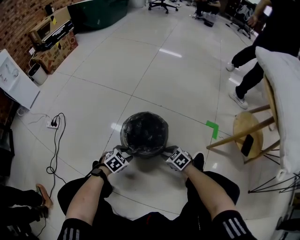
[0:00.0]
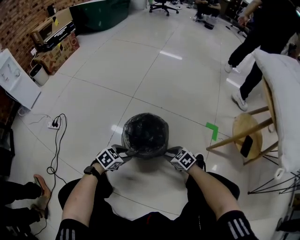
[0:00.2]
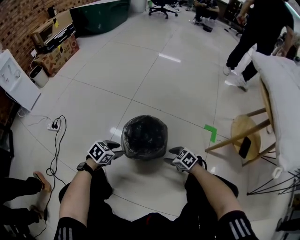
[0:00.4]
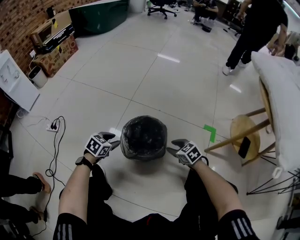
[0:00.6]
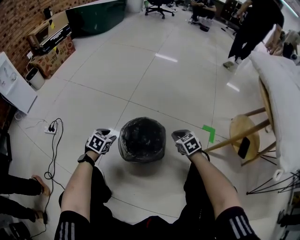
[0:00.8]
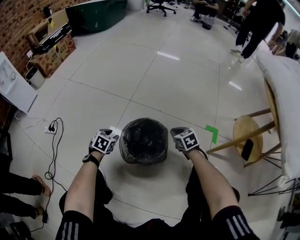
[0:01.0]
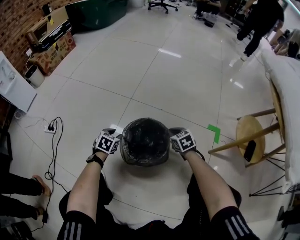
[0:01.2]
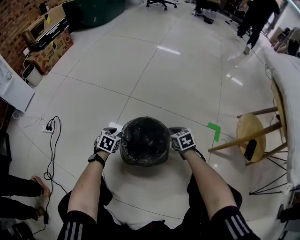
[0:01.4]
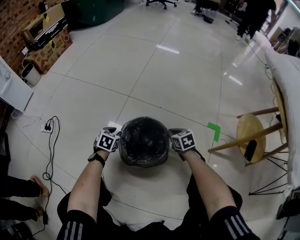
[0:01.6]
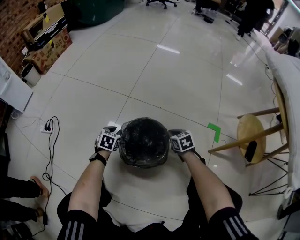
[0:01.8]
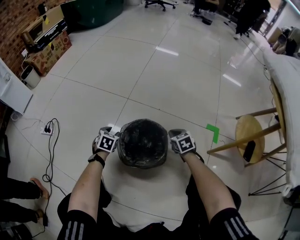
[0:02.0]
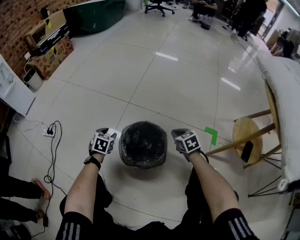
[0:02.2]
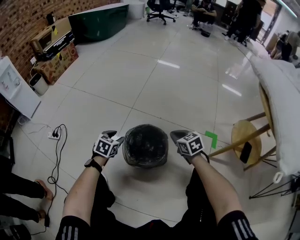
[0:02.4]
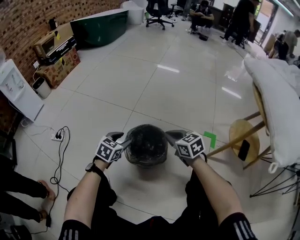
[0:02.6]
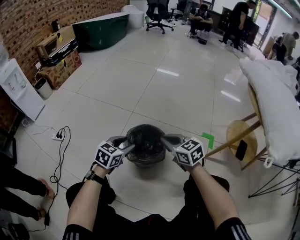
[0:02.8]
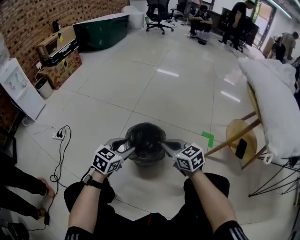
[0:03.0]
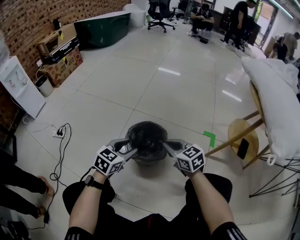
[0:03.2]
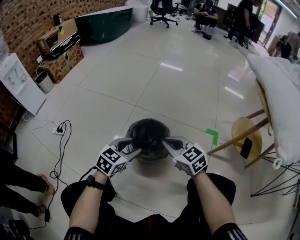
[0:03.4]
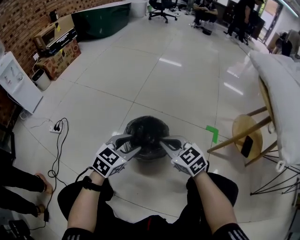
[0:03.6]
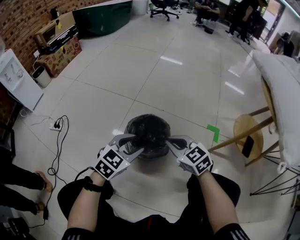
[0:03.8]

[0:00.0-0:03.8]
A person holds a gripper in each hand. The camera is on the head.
0:00.0 to 0:01.2: The left gripper moves some 15 cm, and swivels roughly 20 degrees. Meanwhile the right gripper ends up some 15 cm from where it was, swivels about 20 degrees, and closes up.
0:01.2 to 0:02.6: Both grippers travel together upward, about 15 cm.
0:02.6 to 0:03.8: The right gripper shifts some 5 cm backward. The left gripper travels backward, upward and to the right by approximately 10 cm.

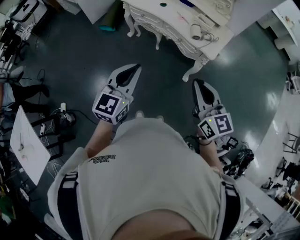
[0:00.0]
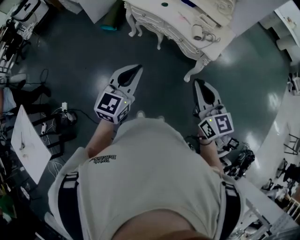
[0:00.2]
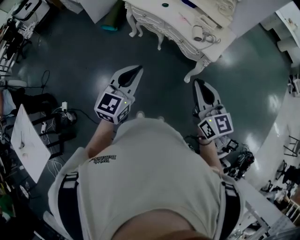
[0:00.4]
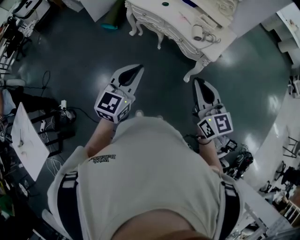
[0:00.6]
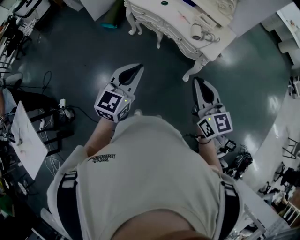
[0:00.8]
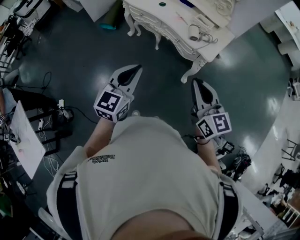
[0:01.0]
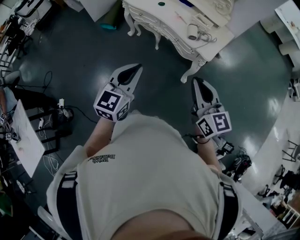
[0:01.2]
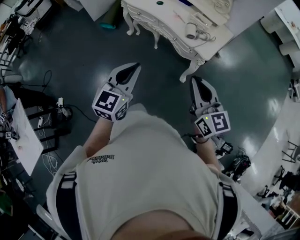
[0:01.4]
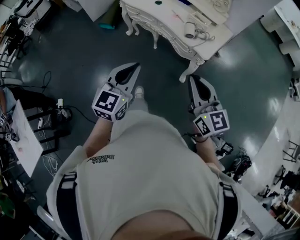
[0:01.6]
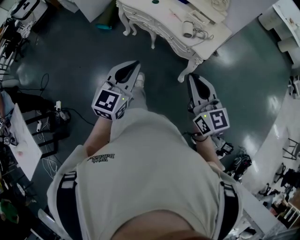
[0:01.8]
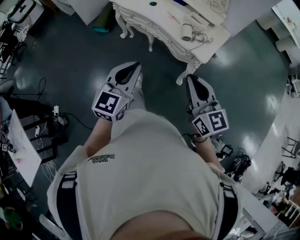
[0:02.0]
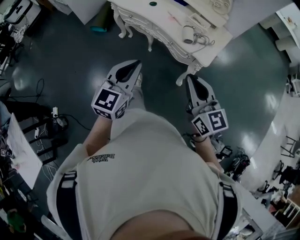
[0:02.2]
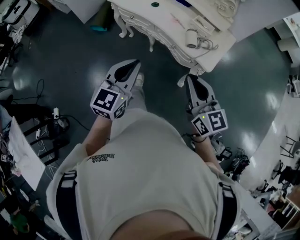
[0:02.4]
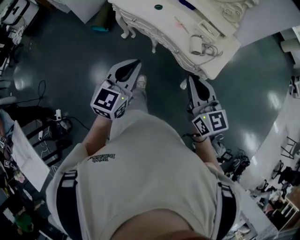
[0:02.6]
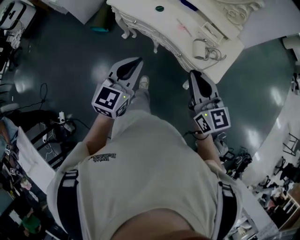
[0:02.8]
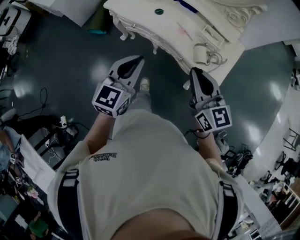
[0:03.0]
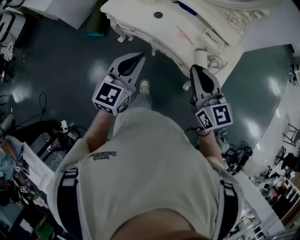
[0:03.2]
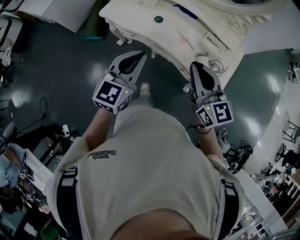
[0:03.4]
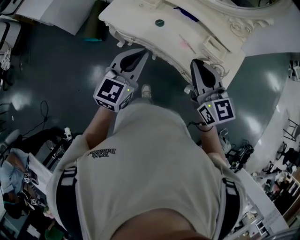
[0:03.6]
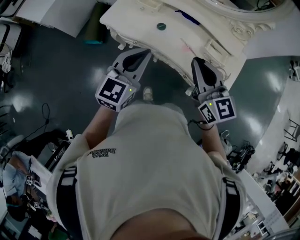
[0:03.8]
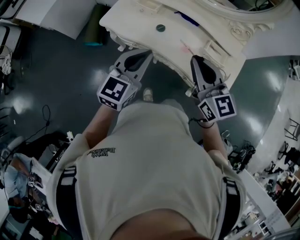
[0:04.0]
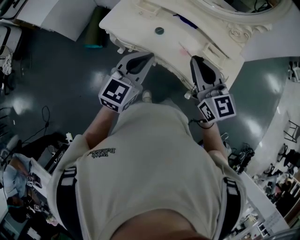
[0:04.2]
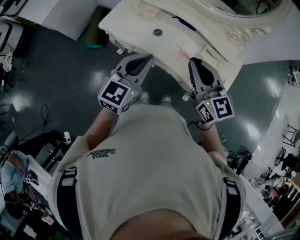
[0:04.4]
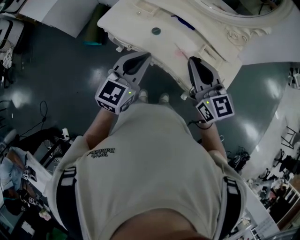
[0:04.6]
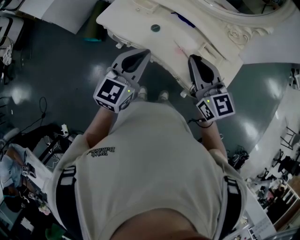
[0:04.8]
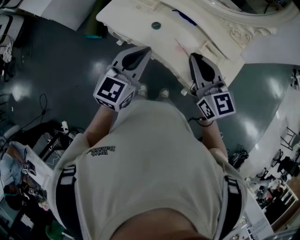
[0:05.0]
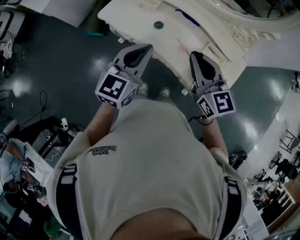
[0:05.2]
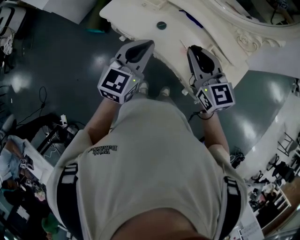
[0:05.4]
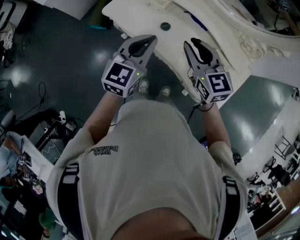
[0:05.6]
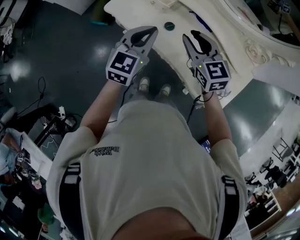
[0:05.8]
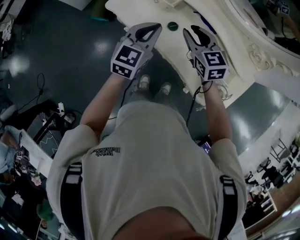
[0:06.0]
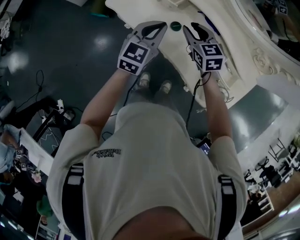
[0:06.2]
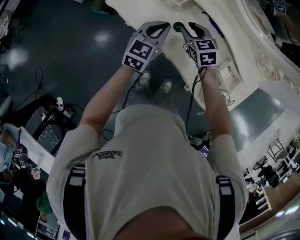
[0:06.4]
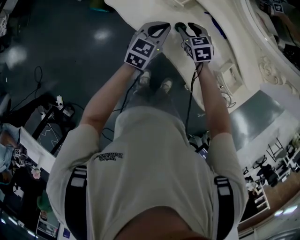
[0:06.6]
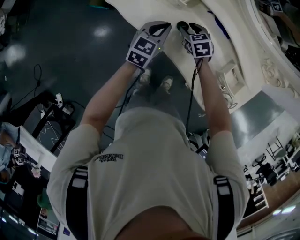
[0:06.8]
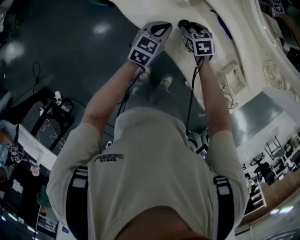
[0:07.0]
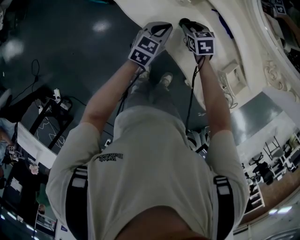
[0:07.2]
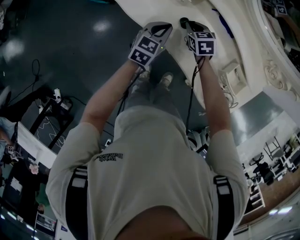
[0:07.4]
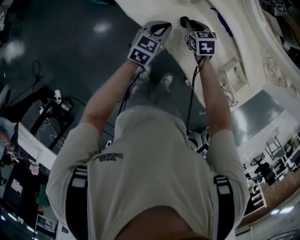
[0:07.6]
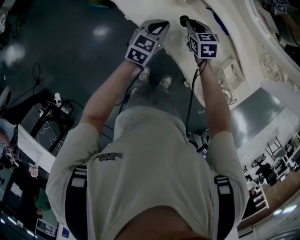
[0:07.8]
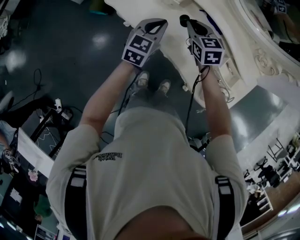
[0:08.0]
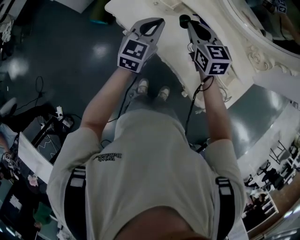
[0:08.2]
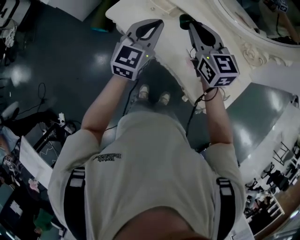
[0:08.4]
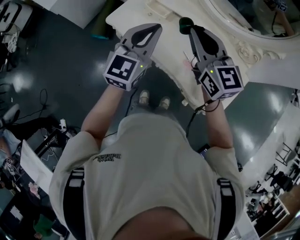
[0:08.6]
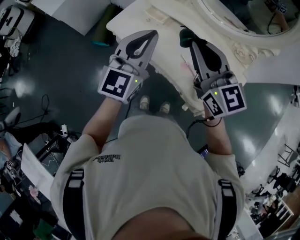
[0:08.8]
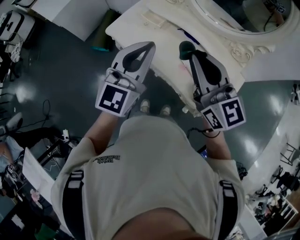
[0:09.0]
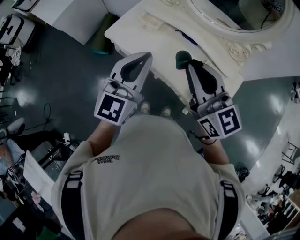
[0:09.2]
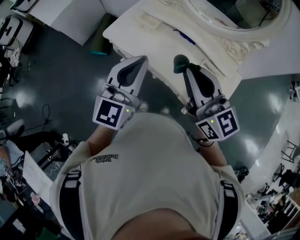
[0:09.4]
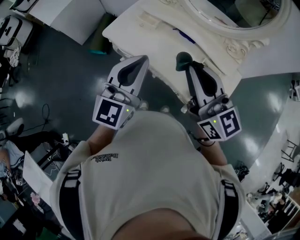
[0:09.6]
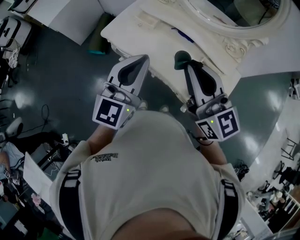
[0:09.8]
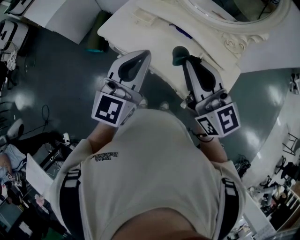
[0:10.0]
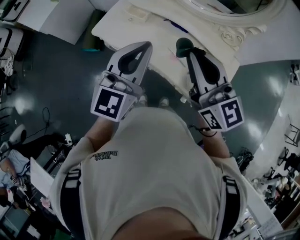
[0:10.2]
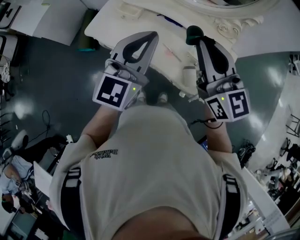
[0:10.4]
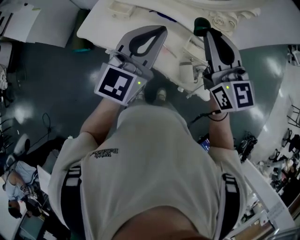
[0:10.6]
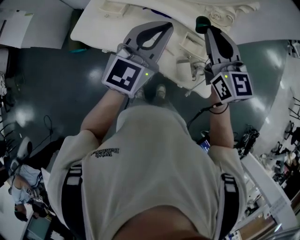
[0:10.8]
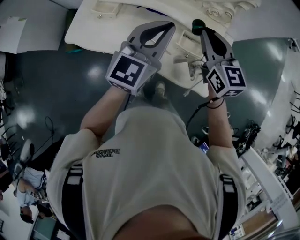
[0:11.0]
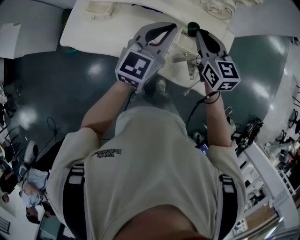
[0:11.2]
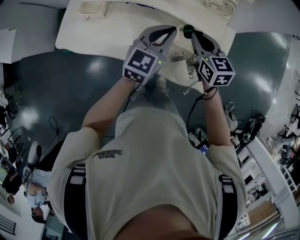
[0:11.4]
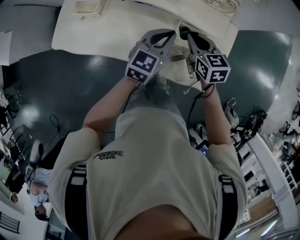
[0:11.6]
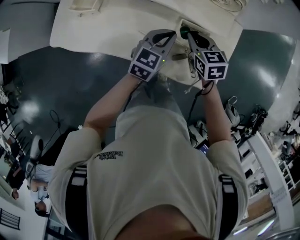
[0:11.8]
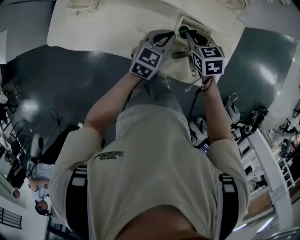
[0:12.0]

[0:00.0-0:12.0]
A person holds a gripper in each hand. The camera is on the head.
0:00.0 to 0:01.6: The two grippers go some 10 cm to the right.
0:01.6 to 0:03.0: The two grippers go some 30 cm forward.
0:03.0 to 0:04.4: The grippers both shift forward by some 15 cm.
0:04.4 to 0:06.0: The two grippers go some 25 cm forward and downward. The right gripper turns by roughly 20 degrees, and opens up.
0:06.0 to 0:07.6: The grippers both shift downward by roughly 20 cm. The right gripper rotates some 20 degrees, and closes its fingers.
0:07.6 to 0:09.0: The grippers both shift upward and backward by approximately 50 cm. The right gripper points its fingers about 50 degrees further upward, while the left gripper tips its fingers upward by some 40 degrees.
0:09.0 to 0:10.4: The grippers both shift to the right by some 10 cm.
0:10.4 to 0:12.0: The right gripper travels downward by about 40 cm, and tips its fingers downward by some 50 degrees. Meanwhile the left gripper travels downward and to the right by about 40 cm, and tips its fingers downward by some 30 degrees.

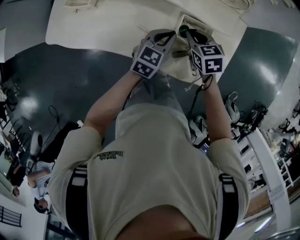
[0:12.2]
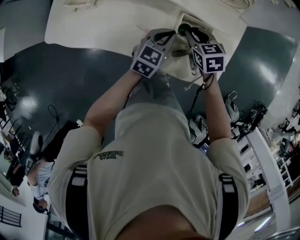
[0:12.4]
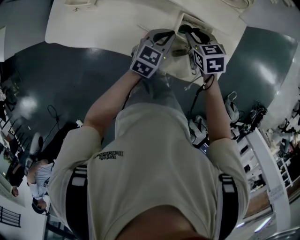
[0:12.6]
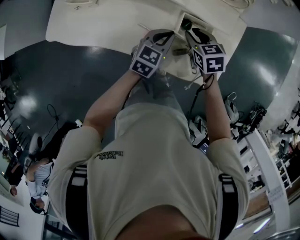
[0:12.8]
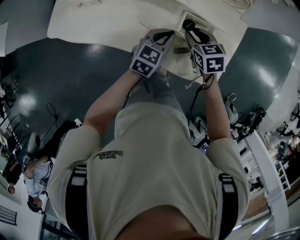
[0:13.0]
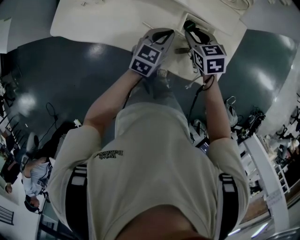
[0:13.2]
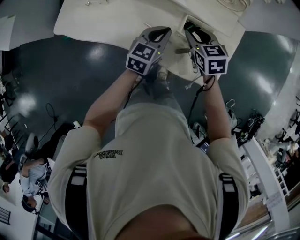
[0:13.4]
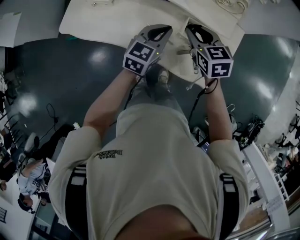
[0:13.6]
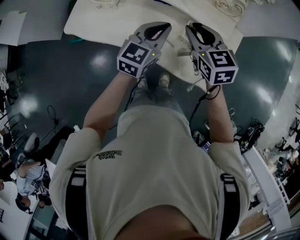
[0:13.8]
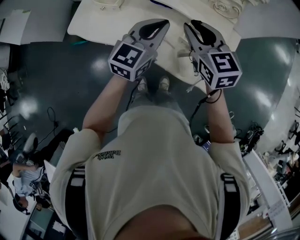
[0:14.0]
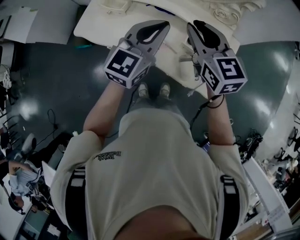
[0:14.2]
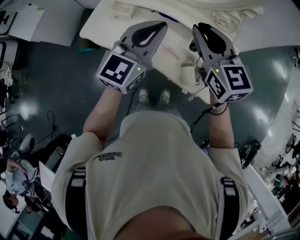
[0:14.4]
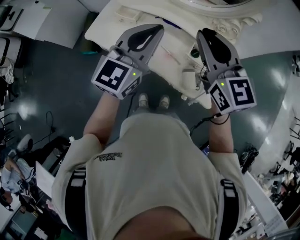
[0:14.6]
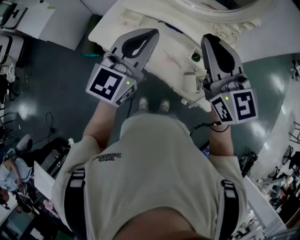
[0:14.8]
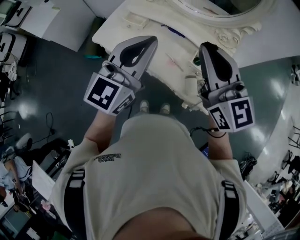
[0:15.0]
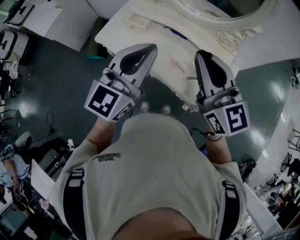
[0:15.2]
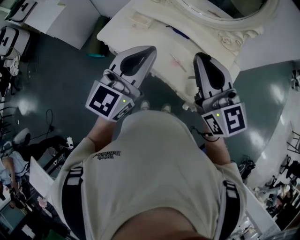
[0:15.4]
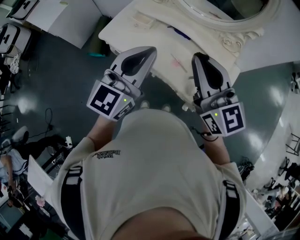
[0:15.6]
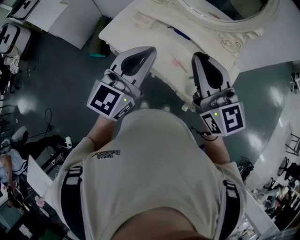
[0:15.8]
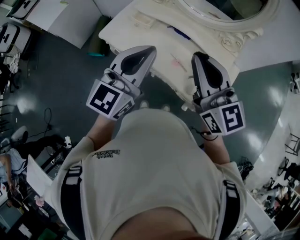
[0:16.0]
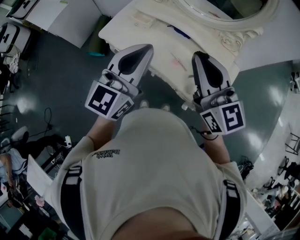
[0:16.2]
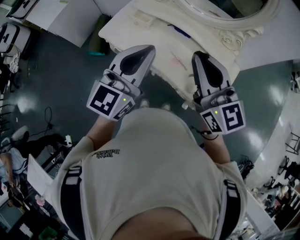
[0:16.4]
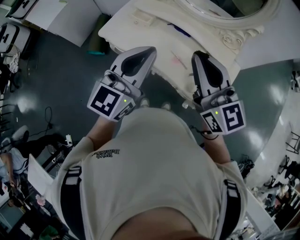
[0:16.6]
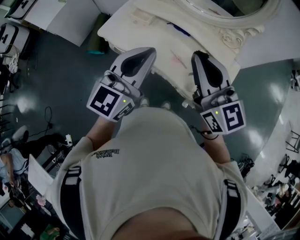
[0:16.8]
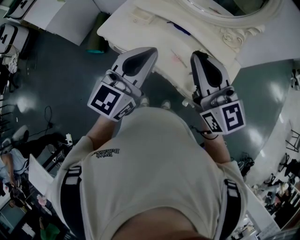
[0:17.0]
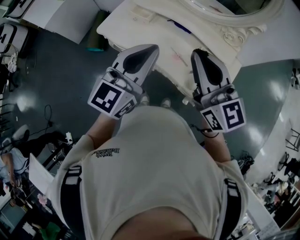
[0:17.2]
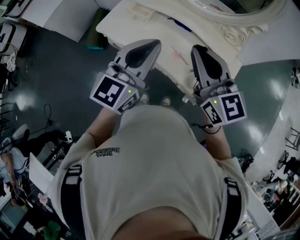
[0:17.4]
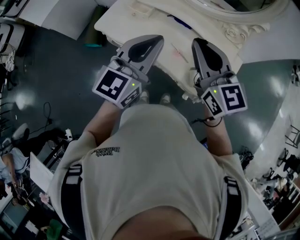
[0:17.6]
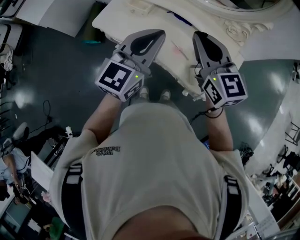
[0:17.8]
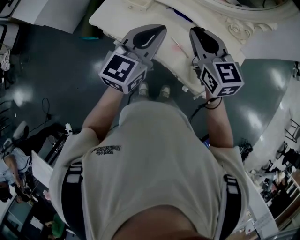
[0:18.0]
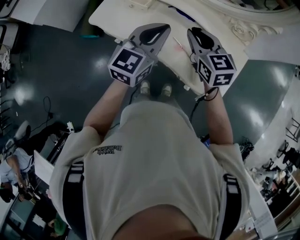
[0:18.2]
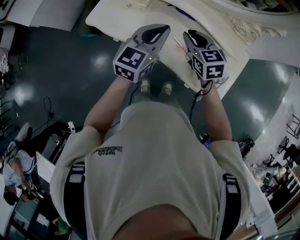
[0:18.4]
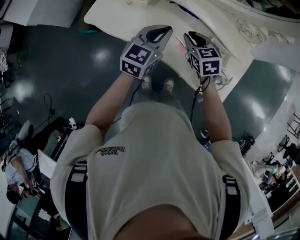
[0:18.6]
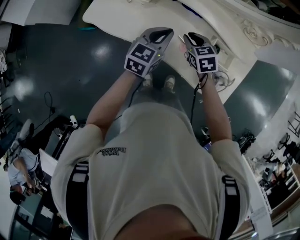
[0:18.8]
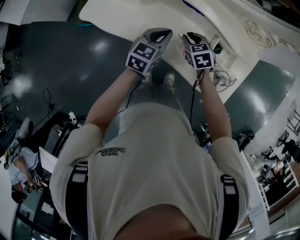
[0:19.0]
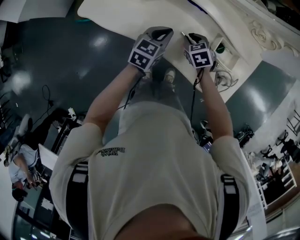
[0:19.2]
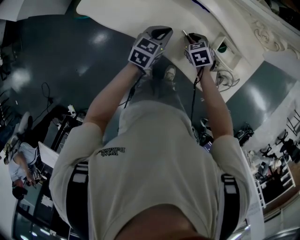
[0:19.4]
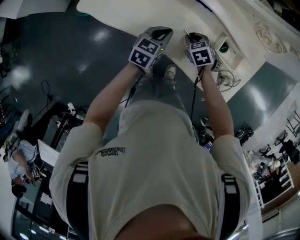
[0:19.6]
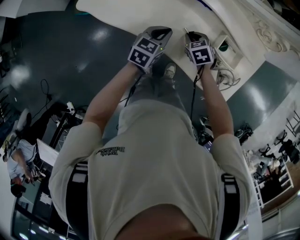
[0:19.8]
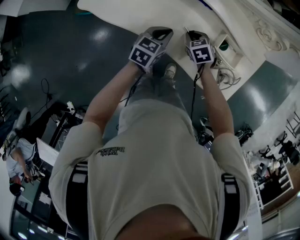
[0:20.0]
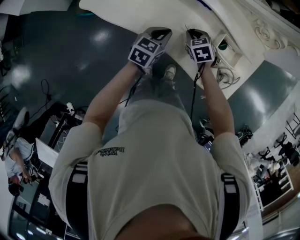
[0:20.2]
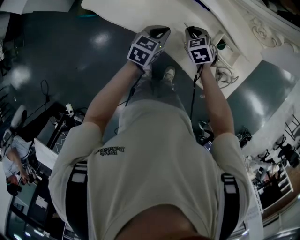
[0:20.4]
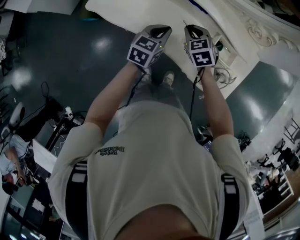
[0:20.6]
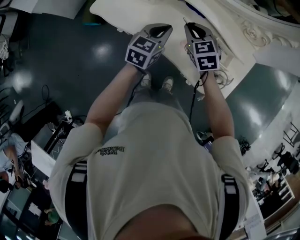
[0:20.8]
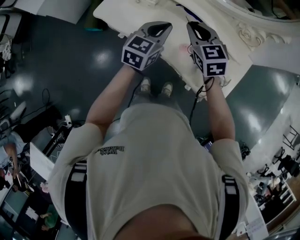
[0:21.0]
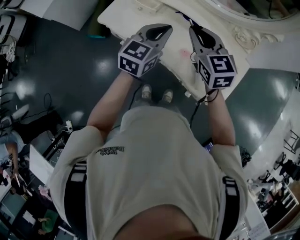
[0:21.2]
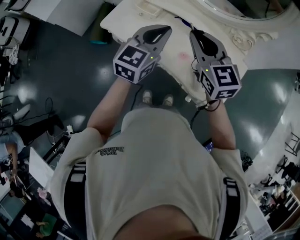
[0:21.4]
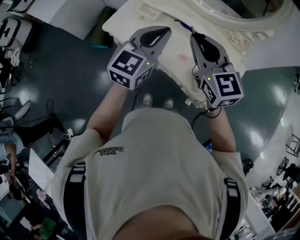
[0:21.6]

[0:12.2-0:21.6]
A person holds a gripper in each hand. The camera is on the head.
0:12.2 to 0:13.8: The right gripper travels upward by some 20 cm, and changes its angle by about 20 degrees, while the left gripper shifts some 15 cm upward and to the left.
0:13.8 to 0:15.4: The left gripper shifts roughly 30 cm upward, to the left and backward, and rotates approximately 20 degrees, while the right gripper heads upward and backward, covering about 25 cm, points its fingers about 30 degrees further upward, and closes.
0:15.4 to 0:17.0: The grippers move only a little.
0:17.0 to 0:18.4: The grippers both shift downward and forward by approximately 25 cm. The right gripper angles its fingers downward, by approximately 40 degrees.
0:18.4 to 0:20.0: The grippers both shift downward by approximately 25 cm. The right gripper rotates some 30 degrees, while the left gripper rotates roughly 30 degrees.
0:20.0 to 0:21.6: The two grippers go approximately 40 cm upward. The left gripper swivels approximately 40 degrees; the right gripper tilts its fingers roughly 50 degrees upward.
